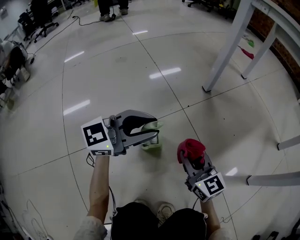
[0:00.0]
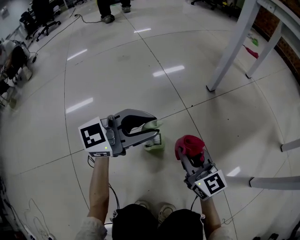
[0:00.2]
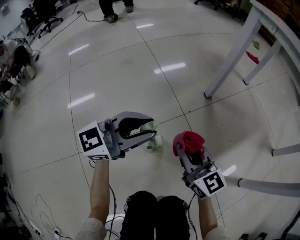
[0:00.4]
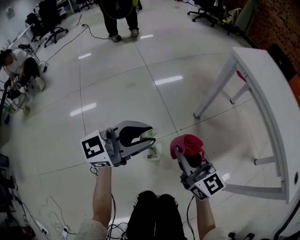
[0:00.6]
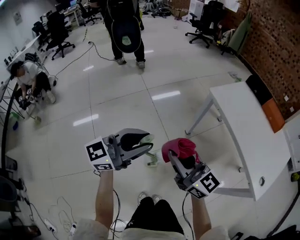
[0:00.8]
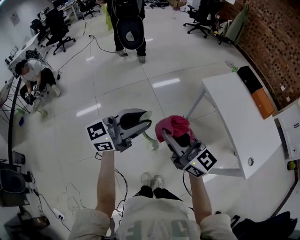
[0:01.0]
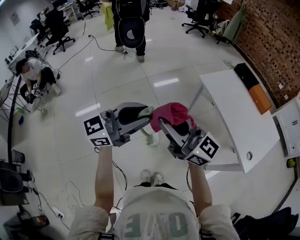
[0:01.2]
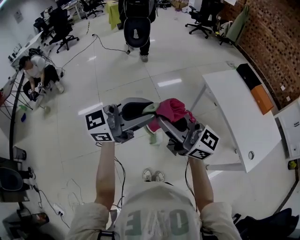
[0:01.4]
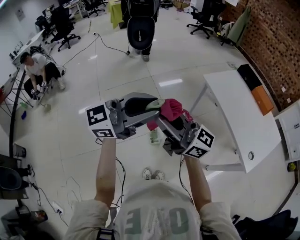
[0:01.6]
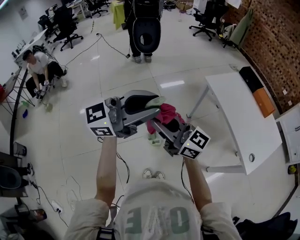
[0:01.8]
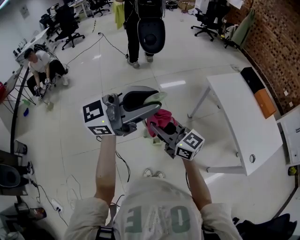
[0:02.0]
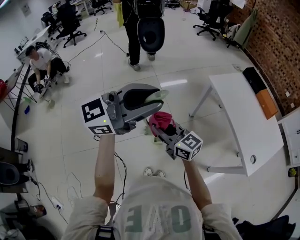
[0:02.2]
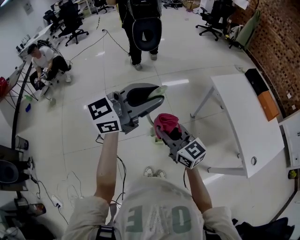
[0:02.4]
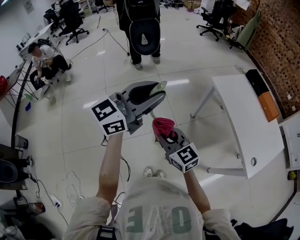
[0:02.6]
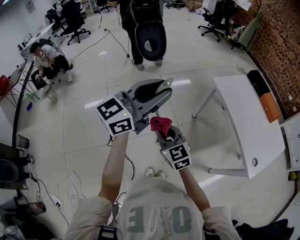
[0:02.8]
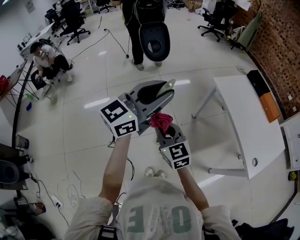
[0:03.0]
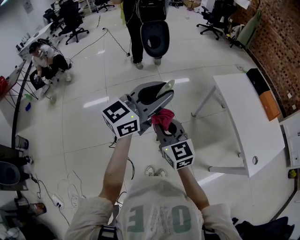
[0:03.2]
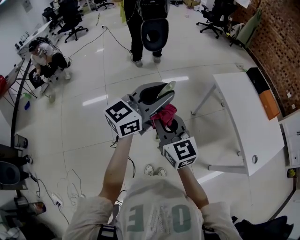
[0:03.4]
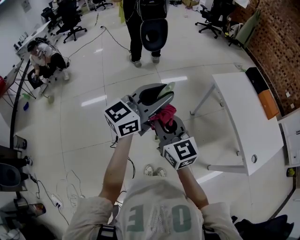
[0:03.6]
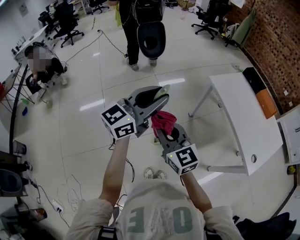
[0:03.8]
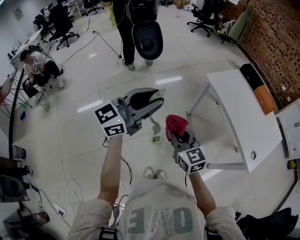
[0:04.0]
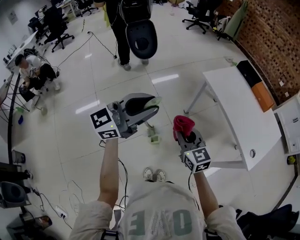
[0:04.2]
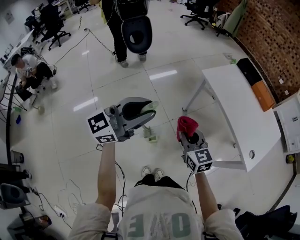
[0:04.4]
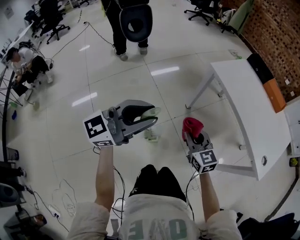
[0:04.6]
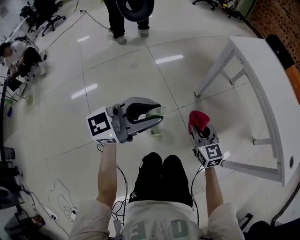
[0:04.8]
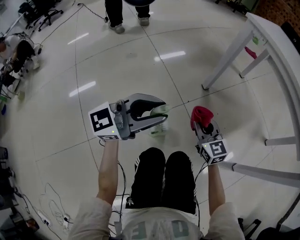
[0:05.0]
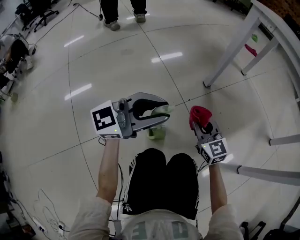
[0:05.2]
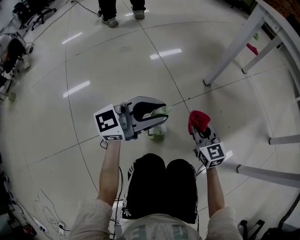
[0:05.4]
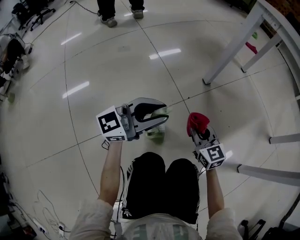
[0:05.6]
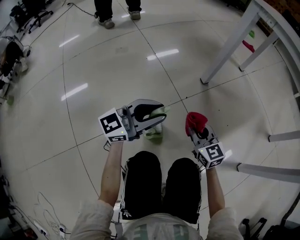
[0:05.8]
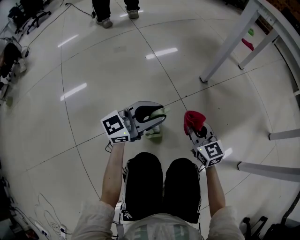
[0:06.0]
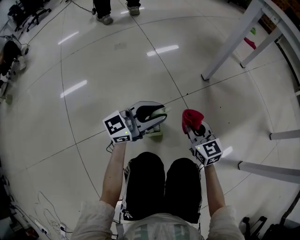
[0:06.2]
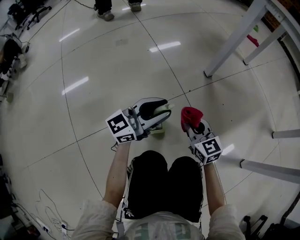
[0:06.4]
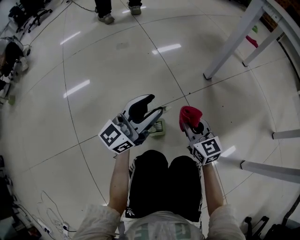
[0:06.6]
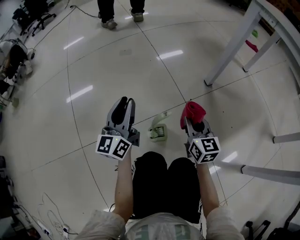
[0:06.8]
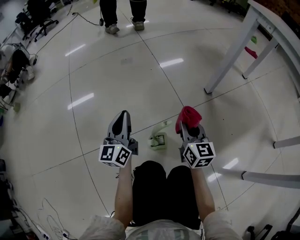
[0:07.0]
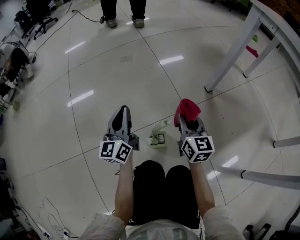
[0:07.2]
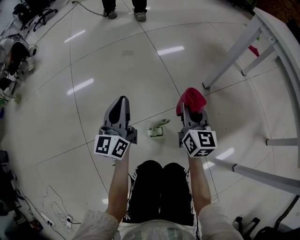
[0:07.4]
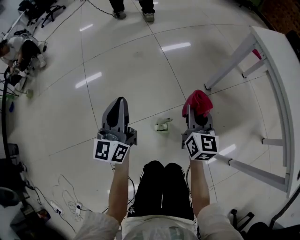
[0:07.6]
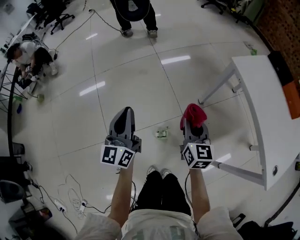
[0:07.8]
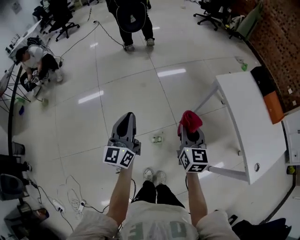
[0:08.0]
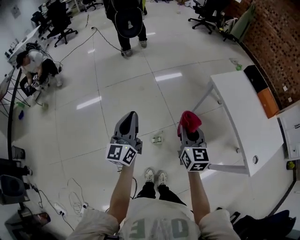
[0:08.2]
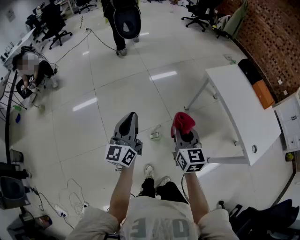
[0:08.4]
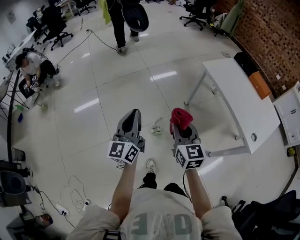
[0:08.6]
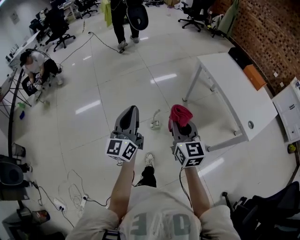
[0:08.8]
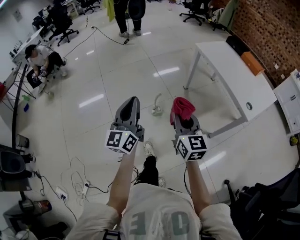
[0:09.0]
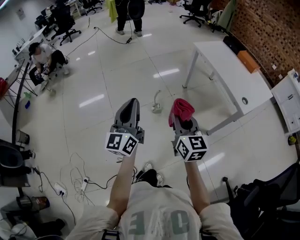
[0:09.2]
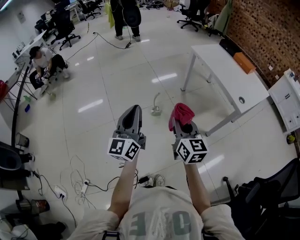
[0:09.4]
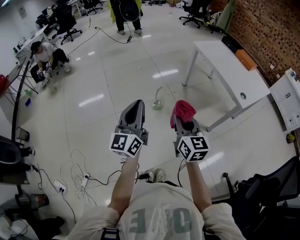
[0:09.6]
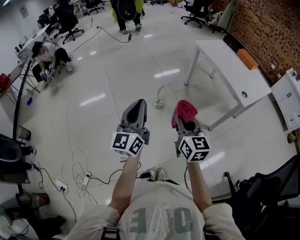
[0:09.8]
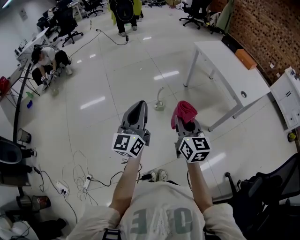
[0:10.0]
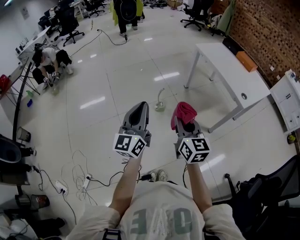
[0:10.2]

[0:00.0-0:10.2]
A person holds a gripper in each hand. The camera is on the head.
0:00.0 to 0:01.4: The grippers both shift upward by roughly 80 cm. The right gripper points its fingers some 30 degrees further upward.
0:01.4 to 0:03.0: The right gripper travels downward by some 15 cm, and tips its fingers downward by roughly 40 degrees, while the left gripper shifts by about 5 cm, and turns by roughly 20 degrees.
0:03.0 to 0:04.4: The right gripper shifts approximately 15 cm to the right and forward. Meanwhile the left gripper travels downward by approximately 10 cm.
0:04.4 to 0:05.8: The grippers both shift downward by about 70 cm.
0:05.8 to 0:07.2: The right gripper changes place by roughly 10 cm. Meanwhile the left gripper goes up and down, roughly 5 cm each way, reversing 2 times, and swivels roughly 60 degrees.
0:07.2 to 0:08.8: Both grippers travel together upward and backward, about 70 cm.
0:08.8 to 0:10.2: The two grippers go some 30 cm backward.

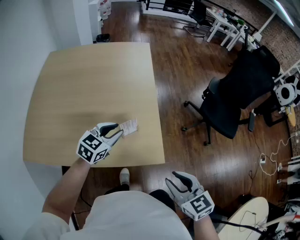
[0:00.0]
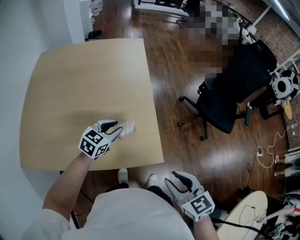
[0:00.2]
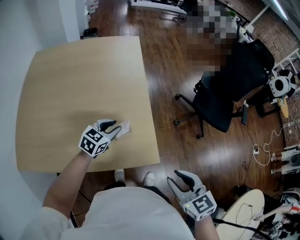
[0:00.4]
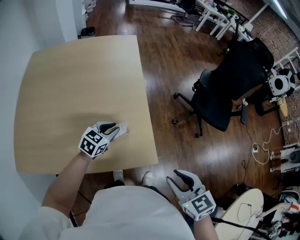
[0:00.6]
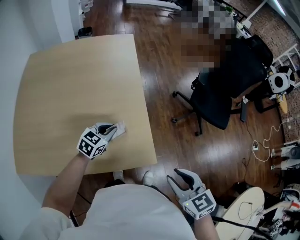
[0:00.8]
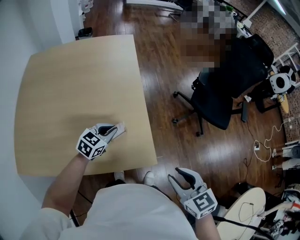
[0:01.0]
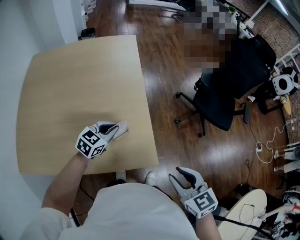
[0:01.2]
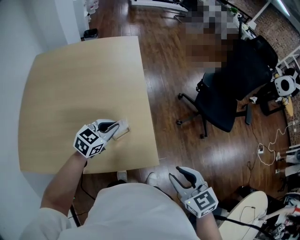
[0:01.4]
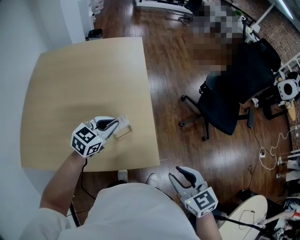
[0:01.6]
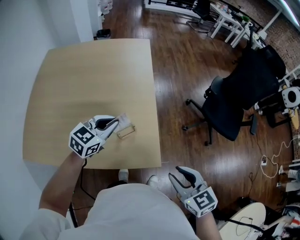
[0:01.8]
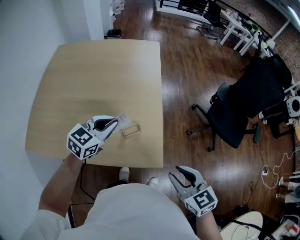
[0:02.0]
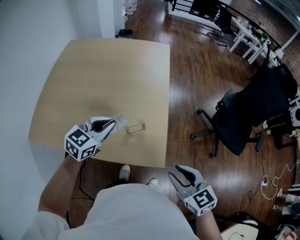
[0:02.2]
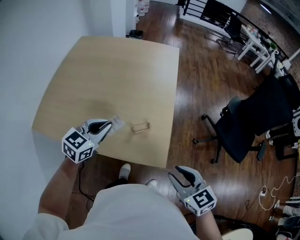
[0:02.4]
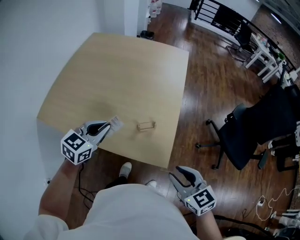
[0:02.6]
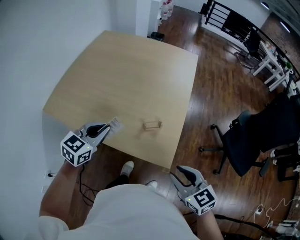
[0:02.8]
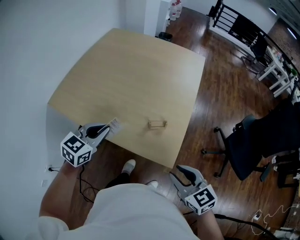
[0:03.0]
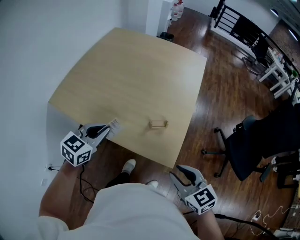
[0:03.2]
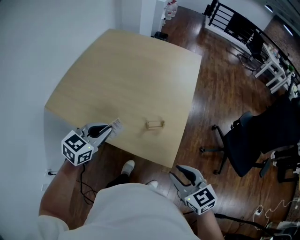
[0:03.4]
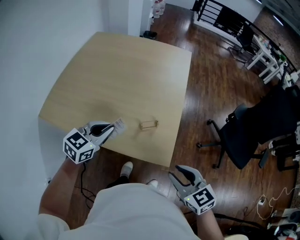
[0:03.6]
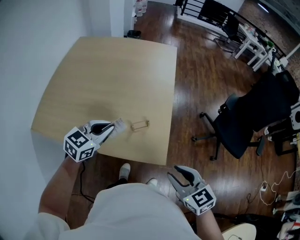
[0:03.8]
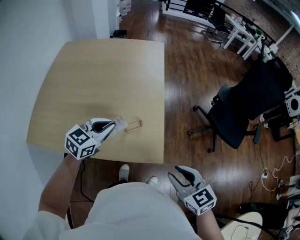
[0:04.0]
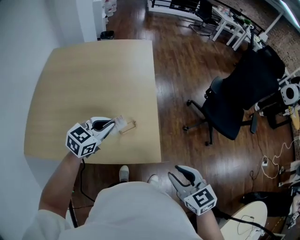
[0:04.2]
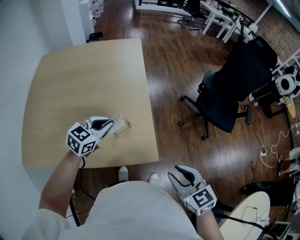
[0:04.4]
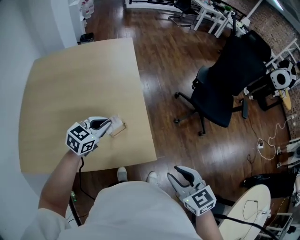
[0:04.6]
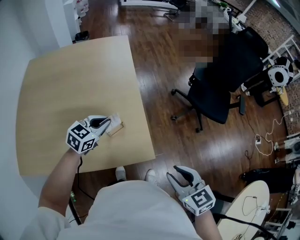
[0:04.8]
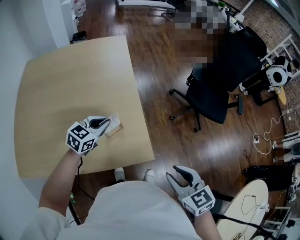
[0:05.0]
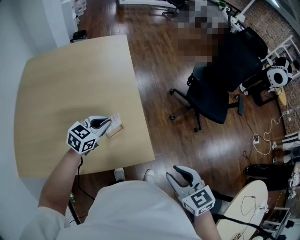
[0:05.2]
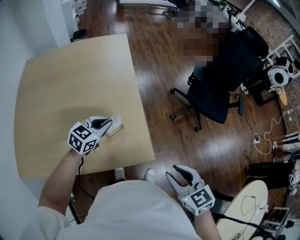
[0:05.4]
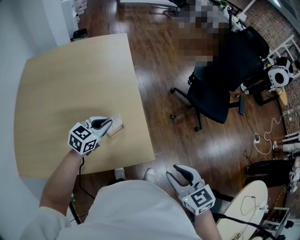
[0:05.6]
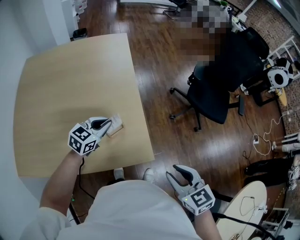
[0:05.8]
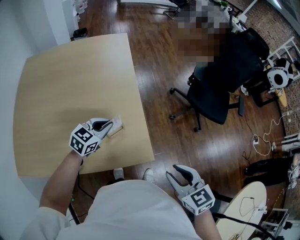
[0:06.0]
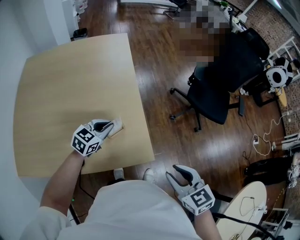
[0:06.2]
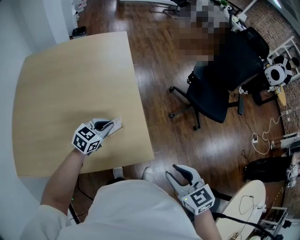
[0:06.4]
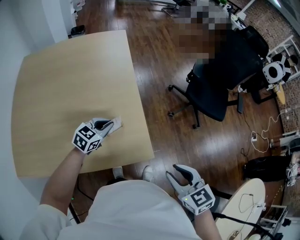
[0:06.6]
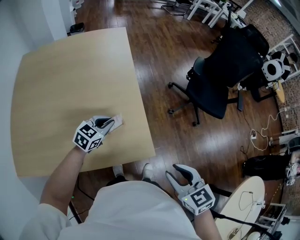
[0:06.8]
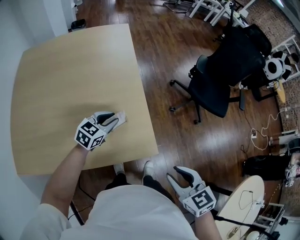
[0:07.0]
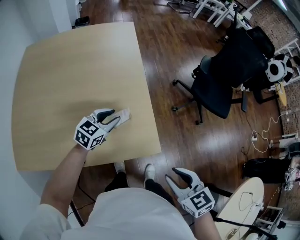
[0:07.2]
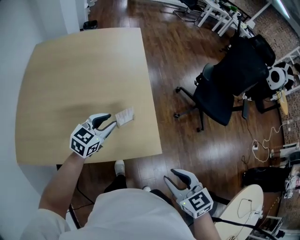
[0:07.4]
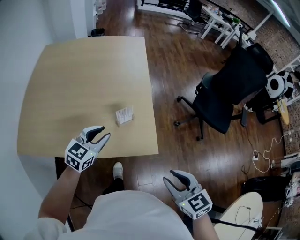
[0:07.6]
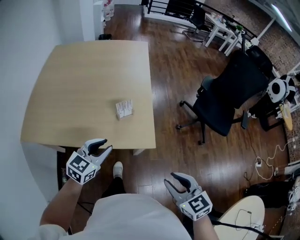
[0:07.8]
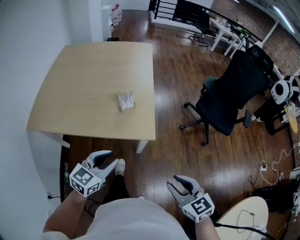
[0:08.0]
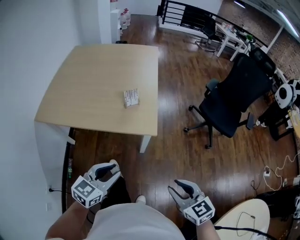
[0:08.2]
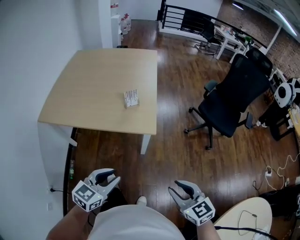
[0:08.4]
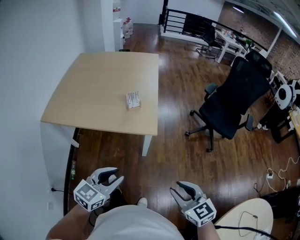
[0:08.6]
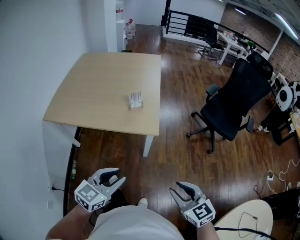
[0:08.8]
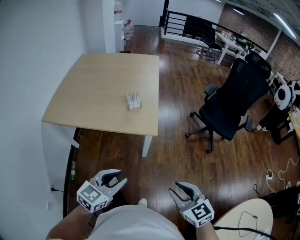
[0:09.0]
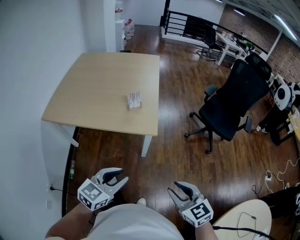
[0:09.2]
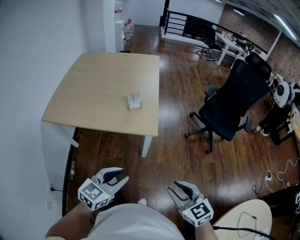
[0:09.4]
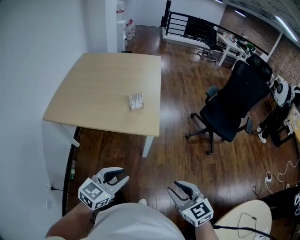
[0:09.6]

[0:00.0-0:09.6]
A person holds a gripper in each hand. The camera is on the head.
0:00.0 to 0:01.6: The two grippers go about 5 cm forward. The left gripper travels downward and back again, some 10 cm each way, and closes its fingers.
0:01.6 to 0:03.2: The right gripper shifts by some 5 cm, and turns by roughly 30 degrees, while the left gripper ends up roughly 25 cm from where it was, and swivels about 30 degrees.
0:03.2 to 0:04.8: The left gripper moves approximately 25 cm, and swivels about 40 degrees, while the right gripper ends up about 5 cm from where it was, and swivels roughly 40 degrees.
0:04.8 to 0:06.4: The left gripper shifts about 5 cm downward.
0:06.4 to 0:08.0: The left gripper shifts approximately 35 cm backward, and opens up. Meanwhile the right gripper travels backward and to the right by about 20 cm.
0:08.0 to 0:09.6: The right gripper shifts some 10 cm backward. The left gripper moves backward, some 15 cm.

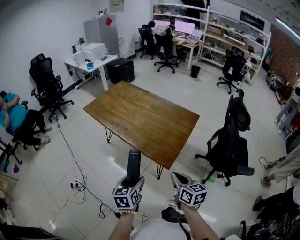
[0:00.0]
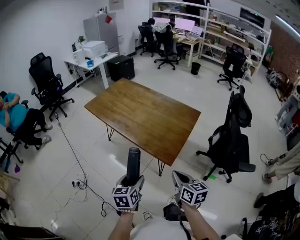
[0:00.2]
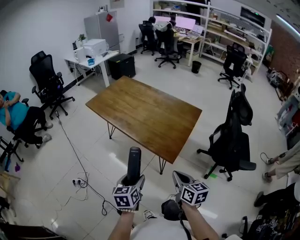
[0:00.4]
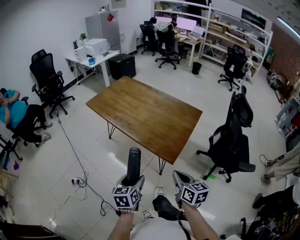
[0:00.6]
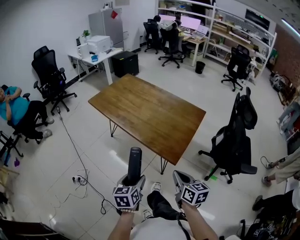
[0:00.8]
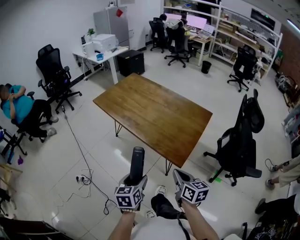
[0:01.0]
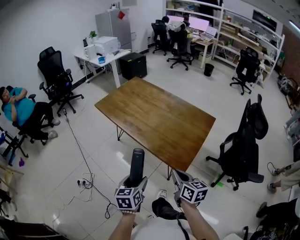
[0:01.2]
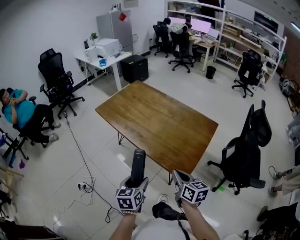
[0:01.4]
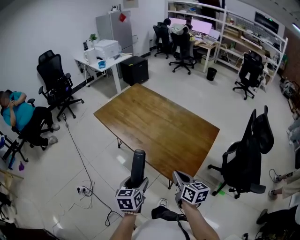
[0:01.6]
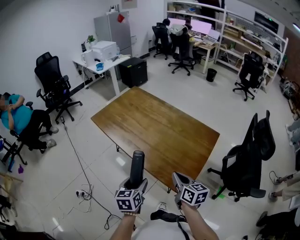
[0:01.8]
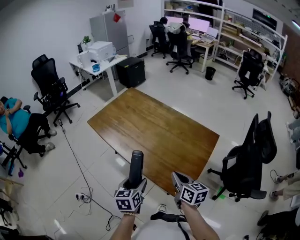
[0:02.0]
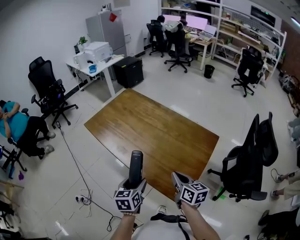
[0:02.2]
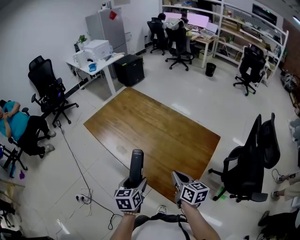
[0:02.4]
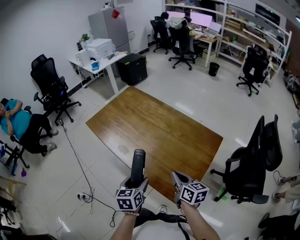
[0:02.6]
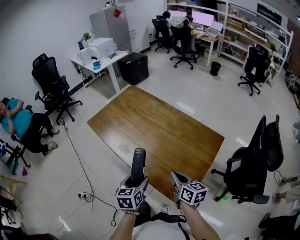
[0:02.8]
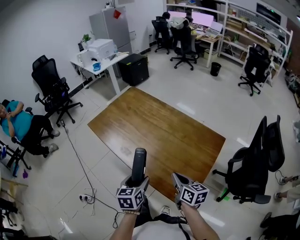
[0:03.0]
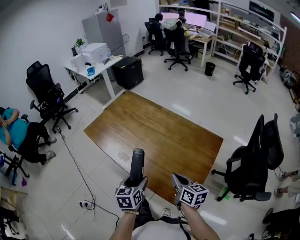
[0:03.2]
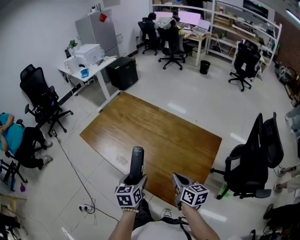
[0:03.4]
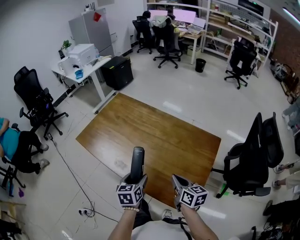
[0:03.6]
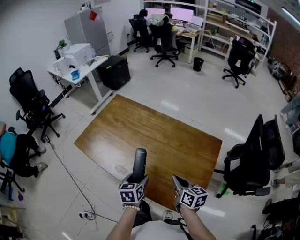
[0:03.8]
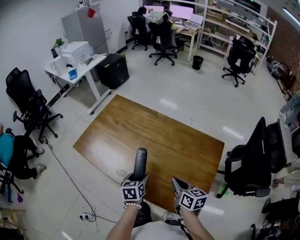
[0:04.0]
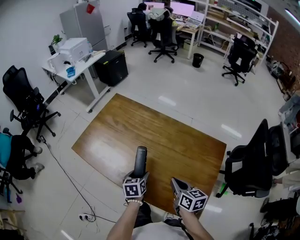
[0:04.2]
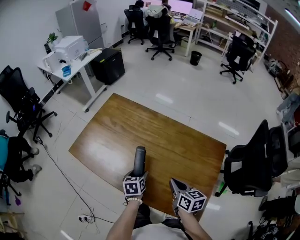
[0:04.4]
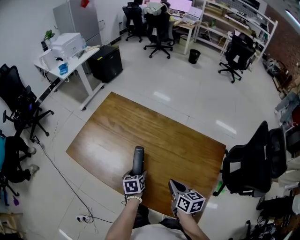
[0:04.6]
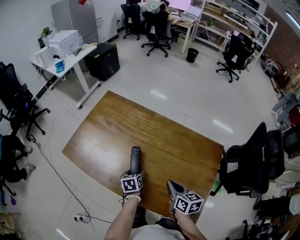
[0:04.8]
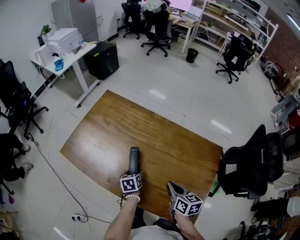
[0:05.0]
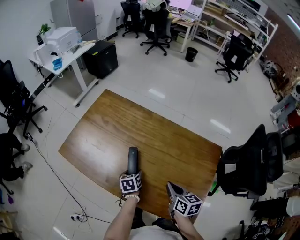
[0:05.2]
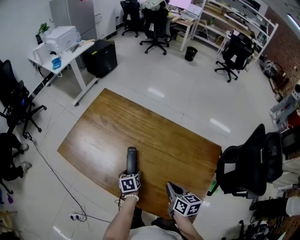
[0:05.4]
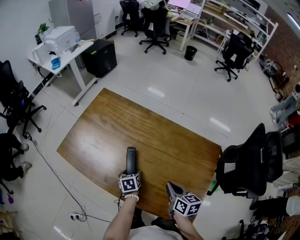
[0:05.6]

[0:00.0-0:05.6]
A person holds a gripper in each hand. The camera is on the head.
0:00.0 to 0:01.4: The grippers both shift forward and to the left by roughly 10 cm.
0:01.4 to 0:02.8: Both grippers travel together forward, roughly 15 cm.
0:02.8 to 0:04.2: The left gripper heads forward and downward, covering some 20 cm, while the right gripper moves forward, roughly 10 cm.
0:04.2 to 0:05.6: The left gripper heads downward, covering approximately 10 cm.
